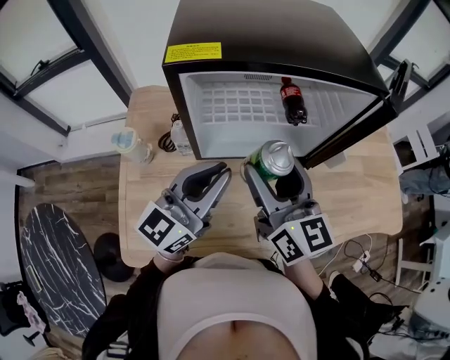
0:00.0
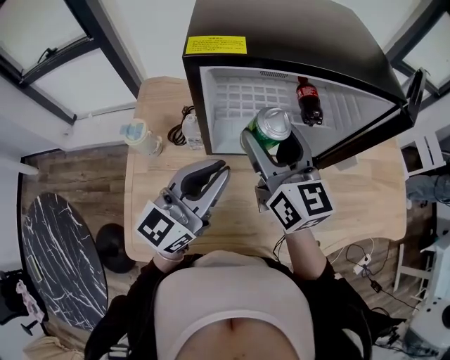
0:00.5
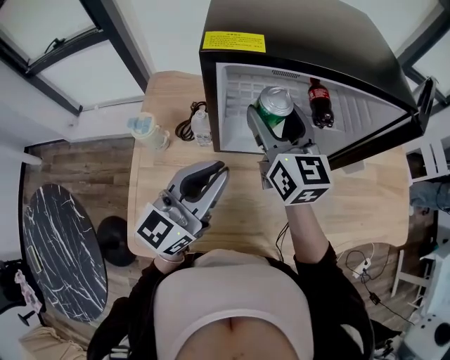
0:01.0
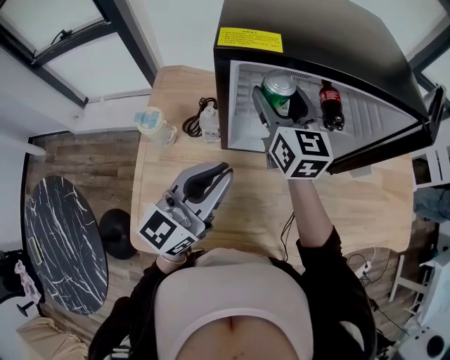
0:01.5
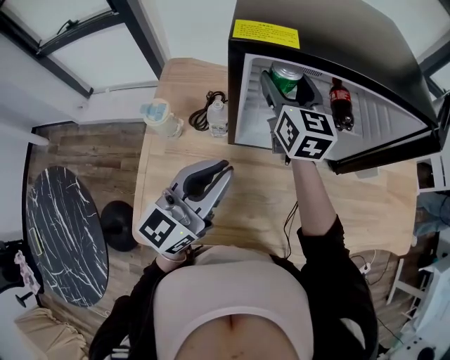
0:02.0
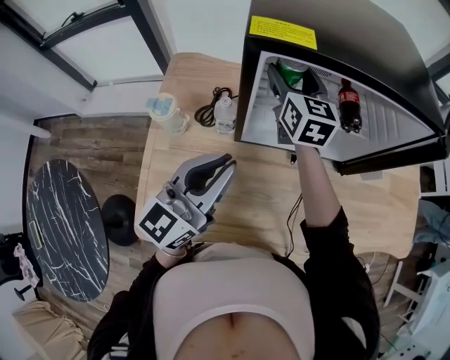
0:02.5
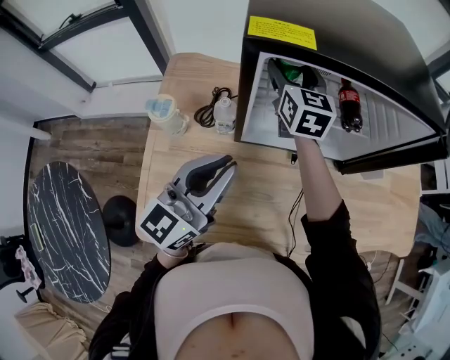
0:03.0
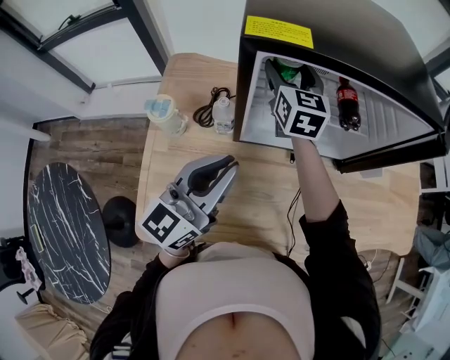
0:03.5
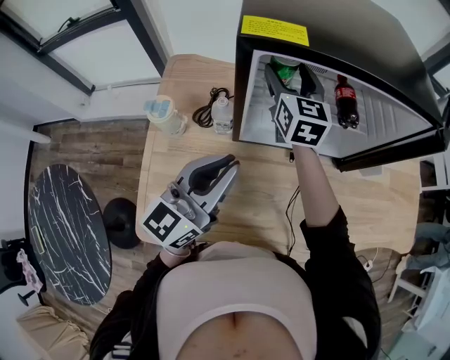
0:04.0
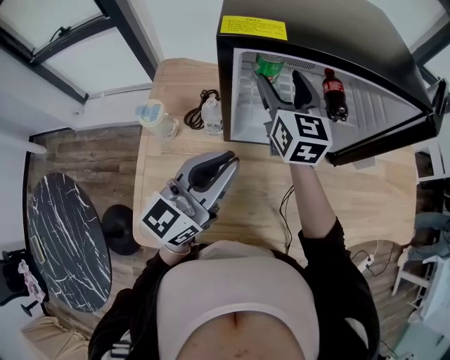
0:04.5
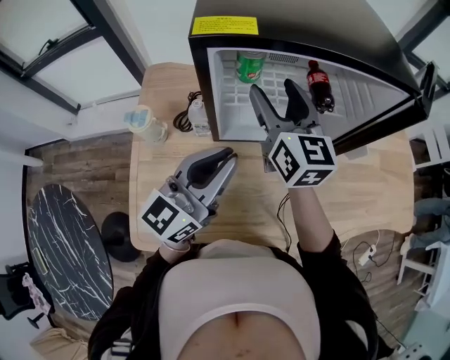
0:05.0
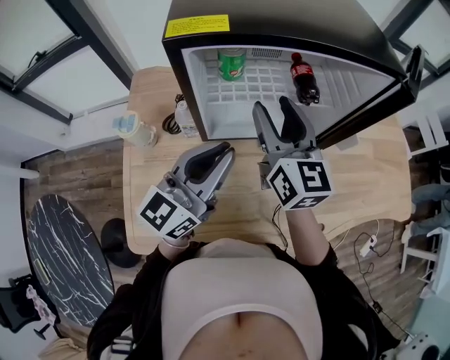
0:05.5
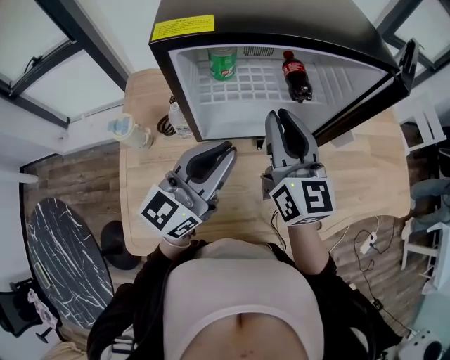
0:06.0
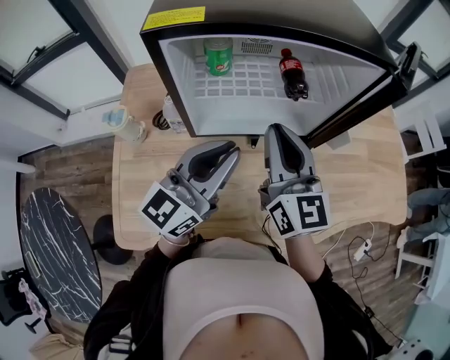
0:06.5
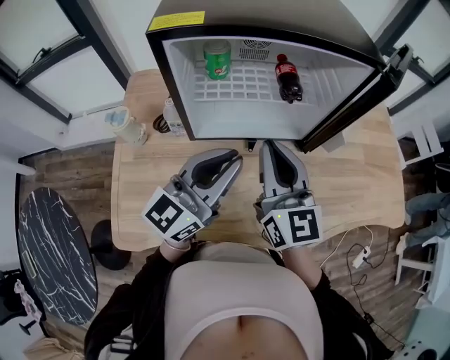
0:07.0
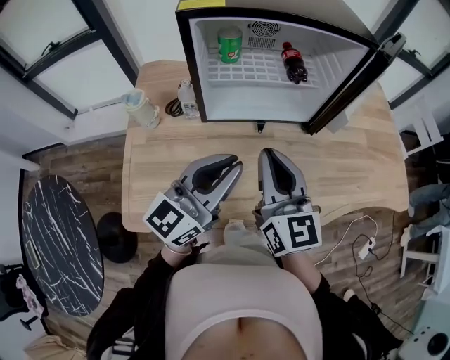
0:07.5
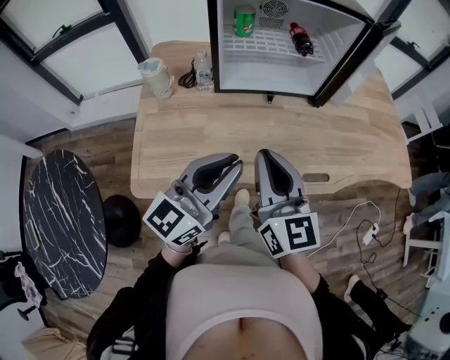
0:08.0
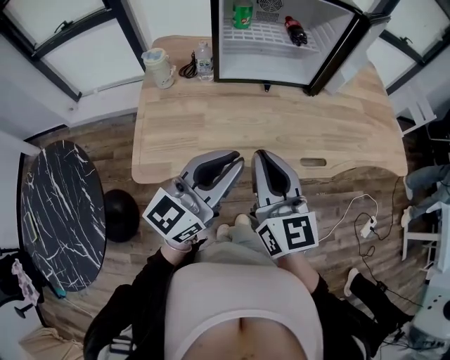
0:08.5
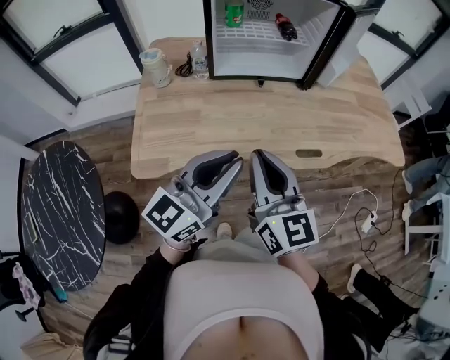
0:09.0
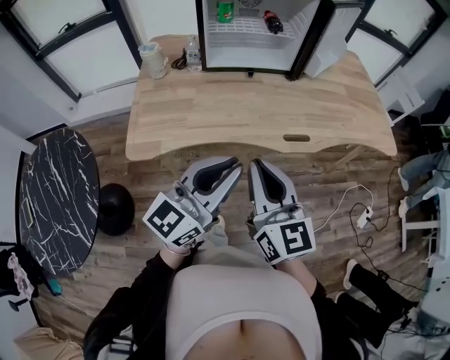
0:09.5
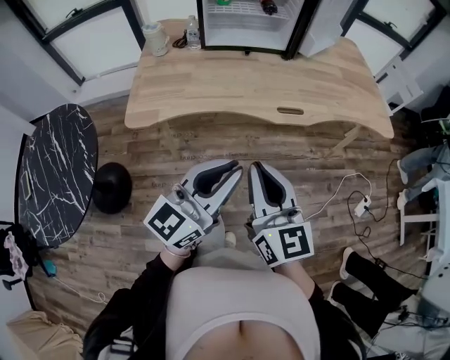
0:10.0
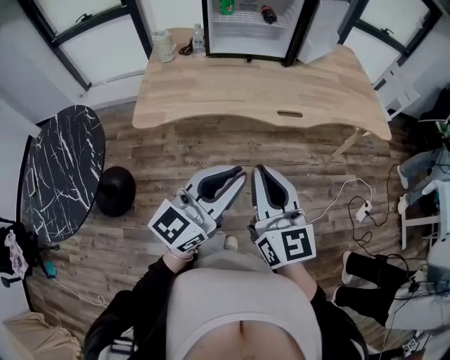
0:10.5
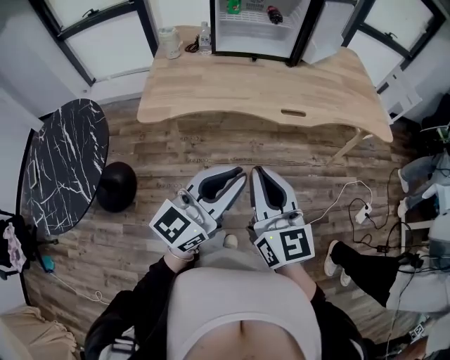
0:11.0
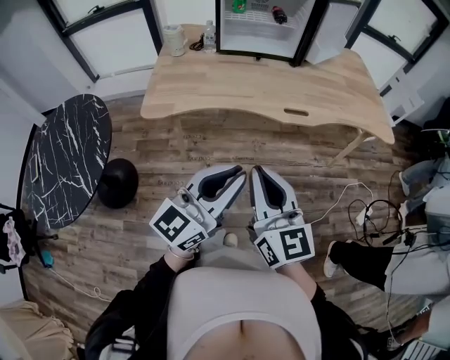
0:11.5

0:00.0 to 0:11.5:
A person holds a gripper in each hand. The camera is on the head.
0:00.0 to 0:02.0: The right gripper heads forward and to the left, covering some 20 cm; the left gripper shifts some 5 cm to the left.
0:02.0 to 0:04.0: The grippers stay close to where they were, moving slightly.
0:04.0 to 0:06.0: The left gripper shifts about 10 cm to the right; the right gripper goes about 20 cm backward and to the right, and closes.
0:06.0 to 0:07.5: Both grippers move backward, roughly 15 cm.
0:07.5 to 0:09.5: Both grippers move backward, some 30 cm.
0:09.5 to 0:11.5: The two grippers go some 15 cm backward.

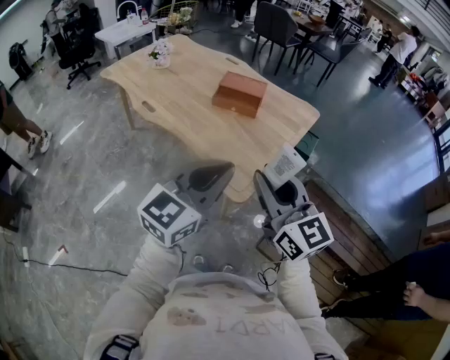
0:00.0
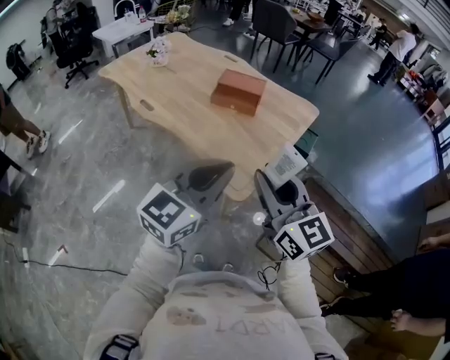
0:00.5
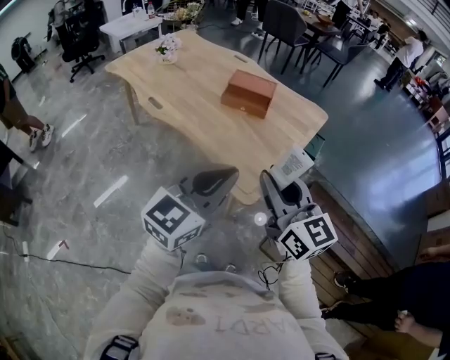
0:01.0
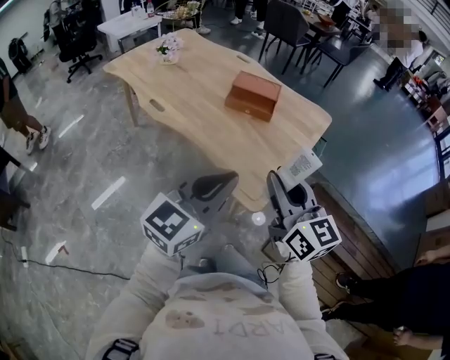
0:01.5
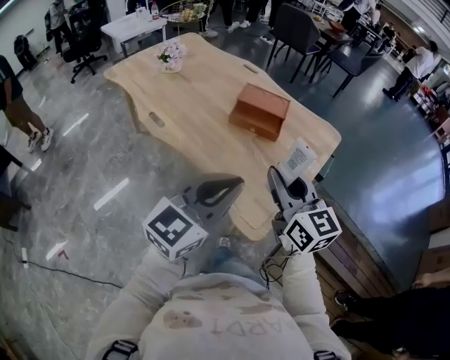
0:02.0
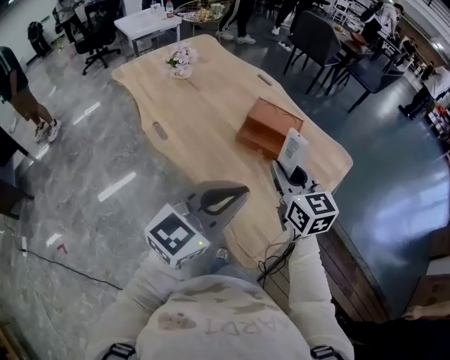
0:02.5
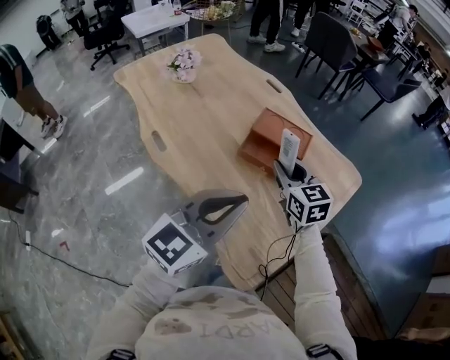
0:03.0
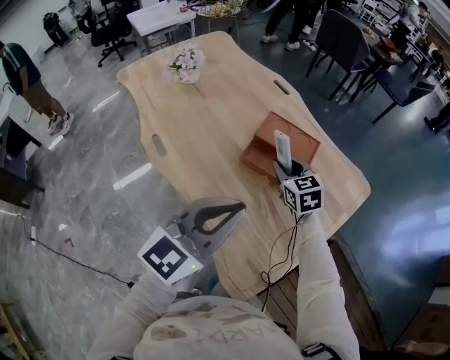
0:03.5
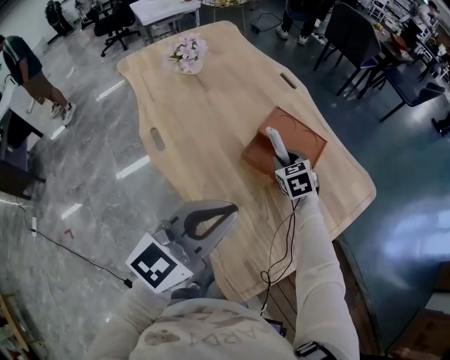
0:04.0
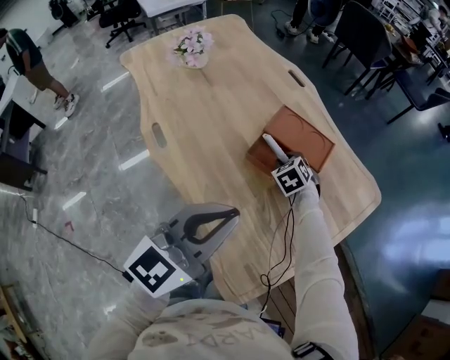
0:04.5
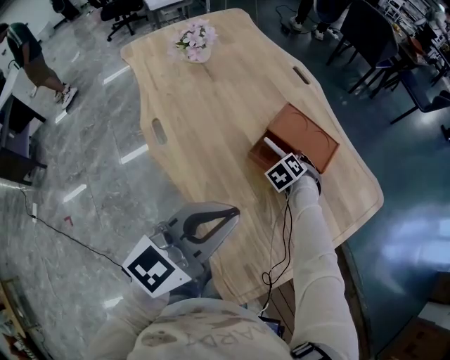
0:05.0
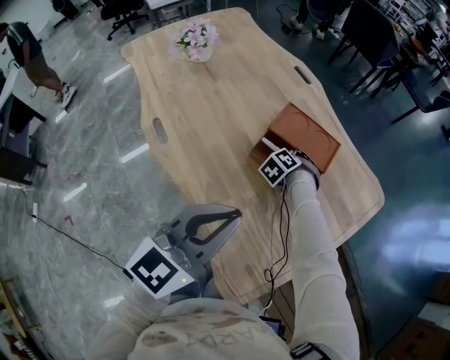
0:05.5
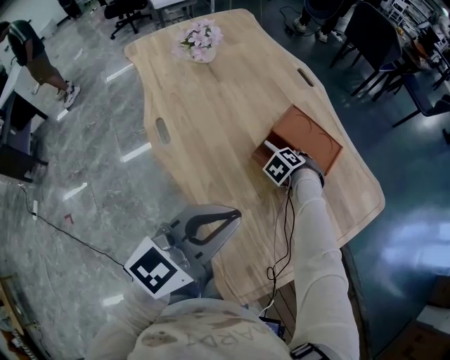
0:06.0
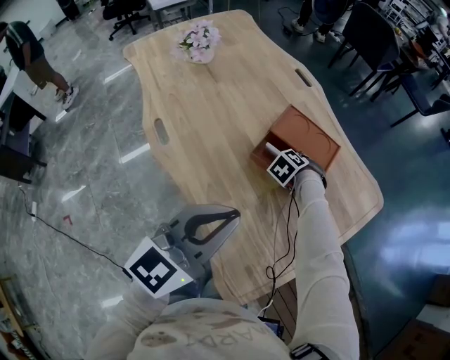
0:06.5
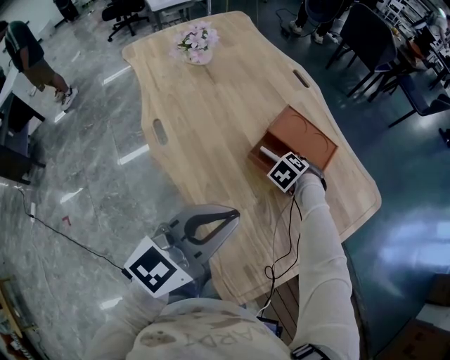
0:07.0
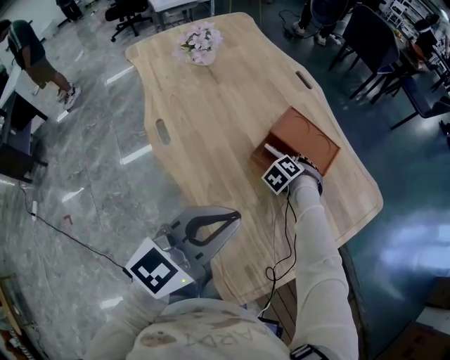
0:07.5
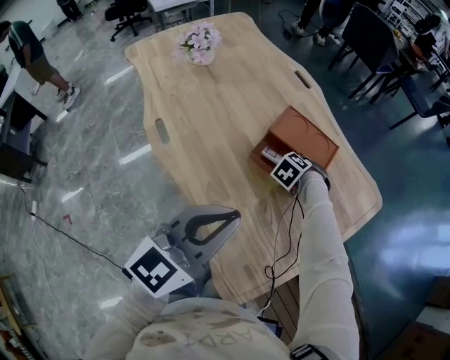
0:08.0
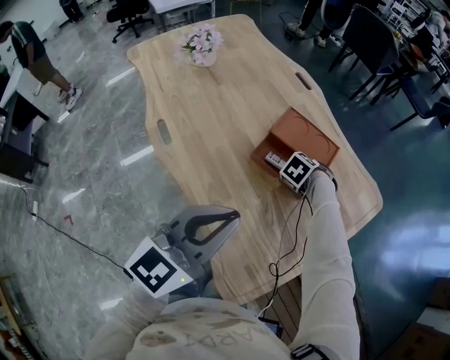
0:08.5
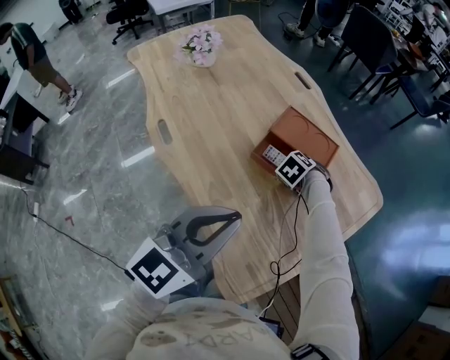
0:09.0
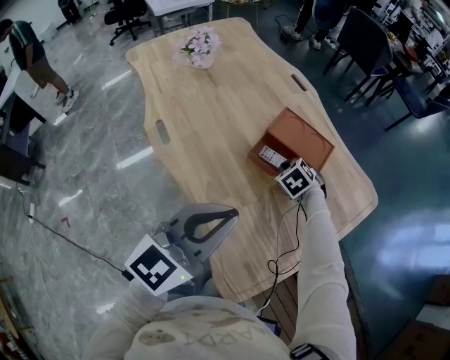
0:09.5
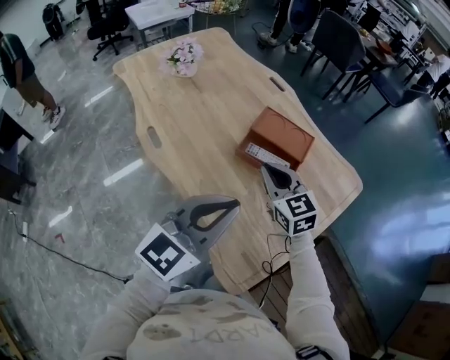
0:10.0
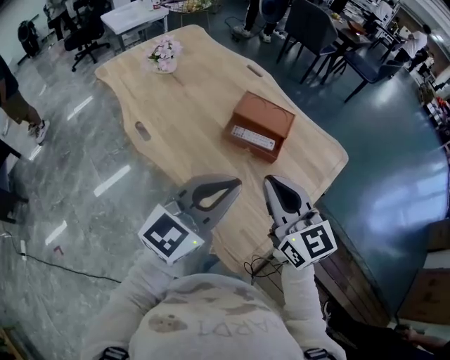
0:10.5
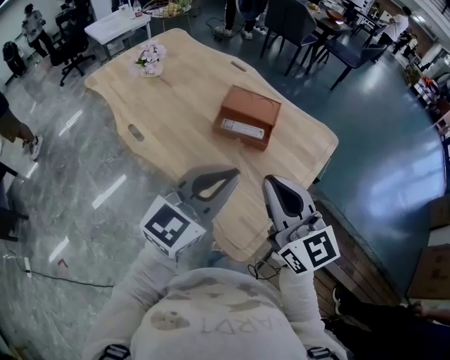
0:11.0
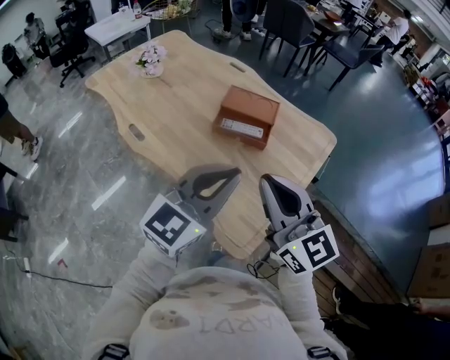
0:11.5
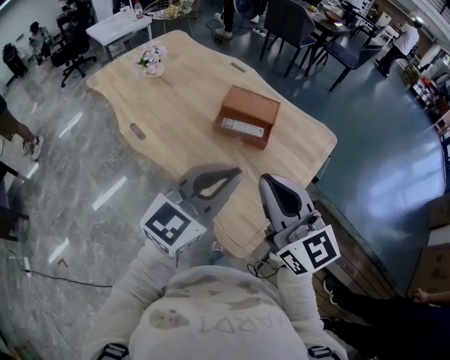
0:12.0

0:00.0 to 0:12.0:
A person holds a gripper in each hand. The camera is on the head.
0:00.0 to 0:02.0: The left gripper is displaced forward and to the left by about 15 cm. The right gripper heads forward, covering about 20 cm.
0:02.0 to 0:04.0: The right gripper moves forward and downward, some 50 cm, and tips its fingers downward by approximately 40 degrees. Meanwhile the left gripper travels forward by some 25 cm.
0:04.0 to 0:06.0: The right gripper shifts approximately 10 cm downward, and turns by roughly 50 degrees.
0:06.0 to 0:08.0: There are only small adjustments of the grippers.
0:08.0 to 0:10.0: The right gripper heads upward, covering roughly 20 cm, points its fingers about 60 degrees further upward, and closes. The left gripper ends up roughly 5 cm from where it was.
0:10.0 to 0:12.0: The right gripper moves backward and upward, about 30 cm, and turns by roughly 20 degrees. Meanwhile the left gripper heads backward, covering some 10 cm.

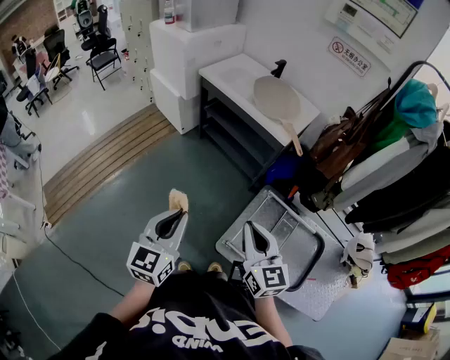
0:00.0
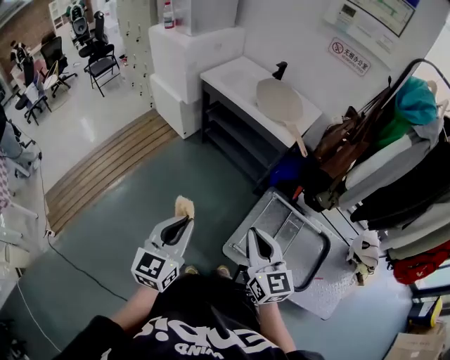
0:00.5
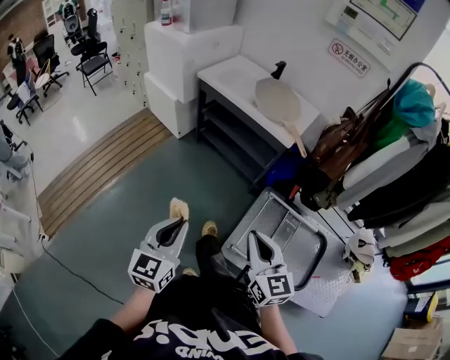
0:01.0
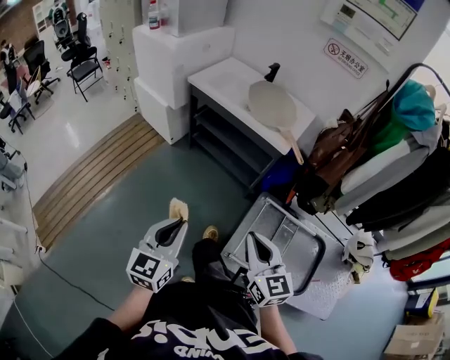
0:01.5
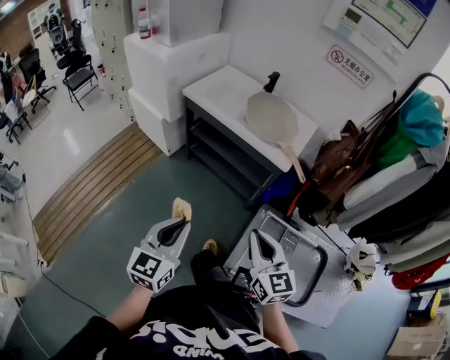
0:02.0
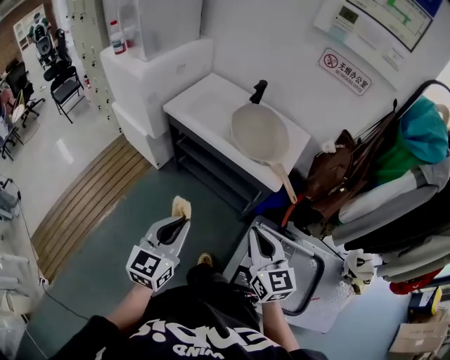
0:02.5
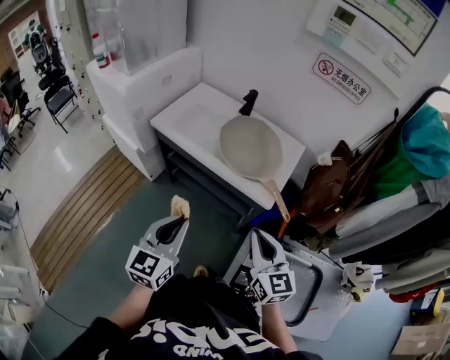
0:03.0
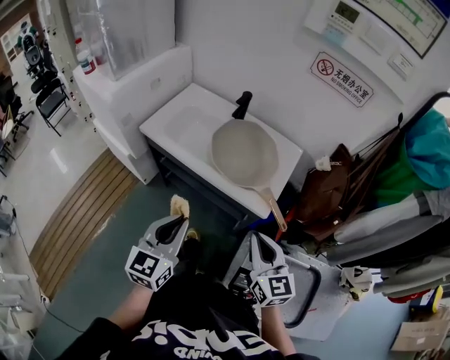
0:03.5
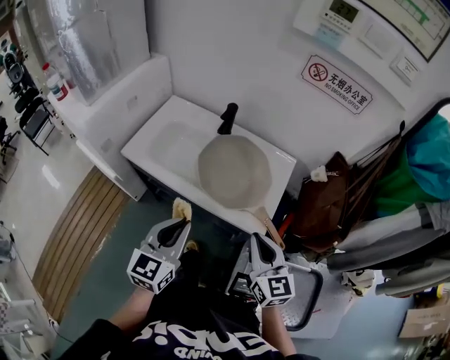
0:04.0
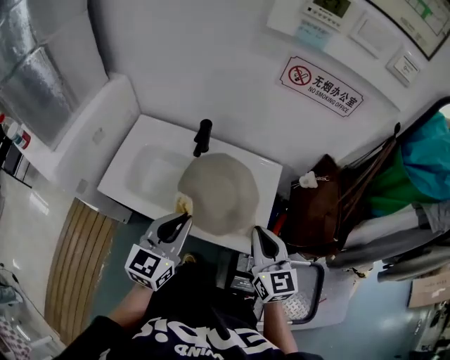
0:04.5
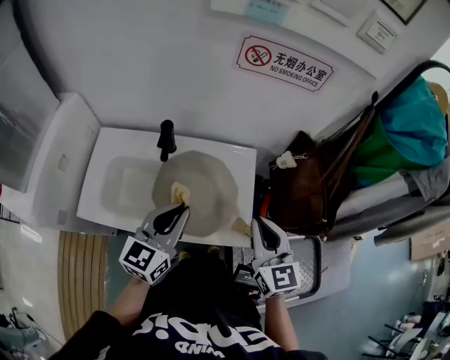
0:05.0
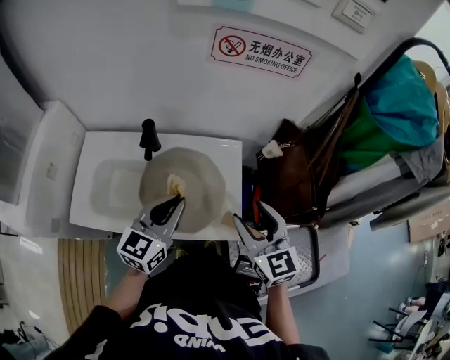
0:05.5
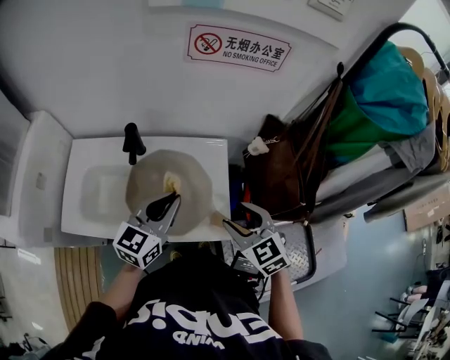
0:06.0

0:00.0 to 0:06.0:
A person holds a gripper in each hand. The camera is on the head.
0:00.0 to 0:02.0: The grippers both shift forward by about 15 cm.
0:02.0 to 0:04.0: The grippers both shift forward by about 35 cm.
0:04.0 to 0:06.0: The right gripper shifts approximately 10 cm forward, changes its angle by some 30 degrees, and opens its fingers; the left gripper shifts about 25 cm forward, and rotates about 30 degrees.
